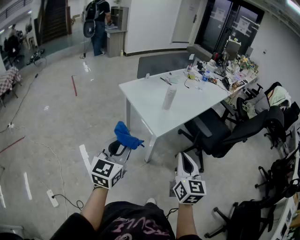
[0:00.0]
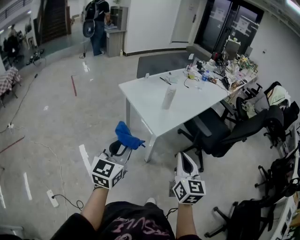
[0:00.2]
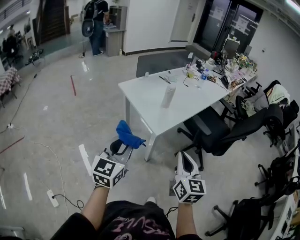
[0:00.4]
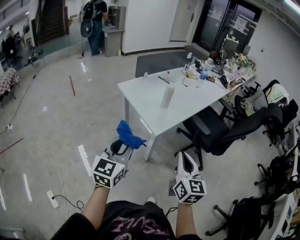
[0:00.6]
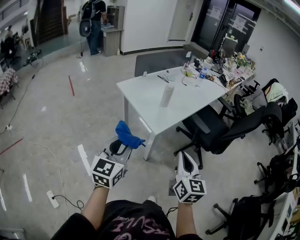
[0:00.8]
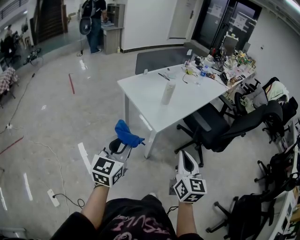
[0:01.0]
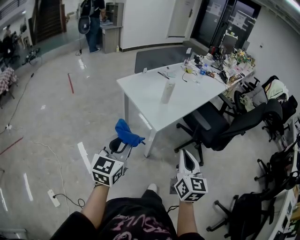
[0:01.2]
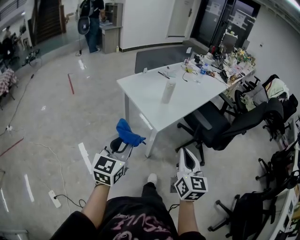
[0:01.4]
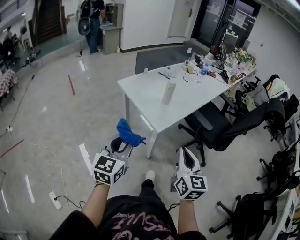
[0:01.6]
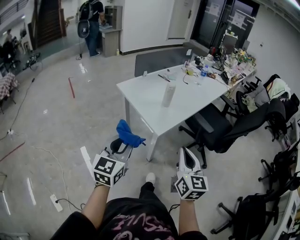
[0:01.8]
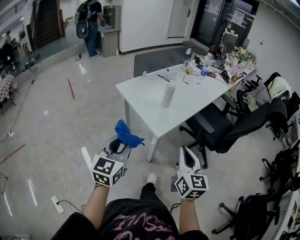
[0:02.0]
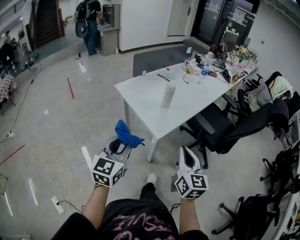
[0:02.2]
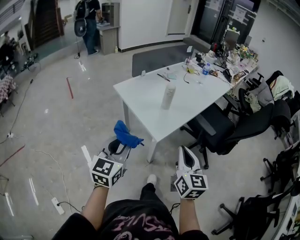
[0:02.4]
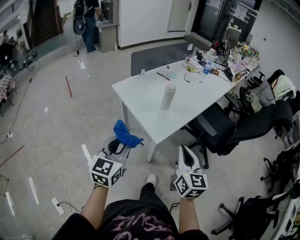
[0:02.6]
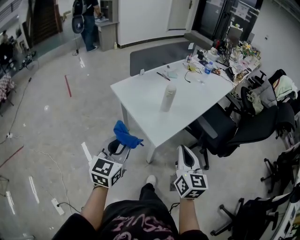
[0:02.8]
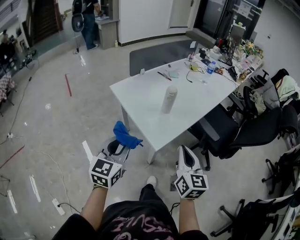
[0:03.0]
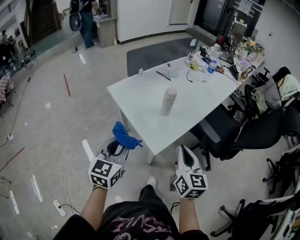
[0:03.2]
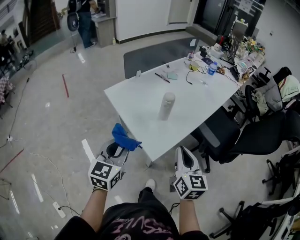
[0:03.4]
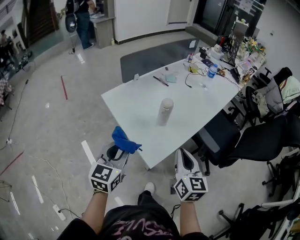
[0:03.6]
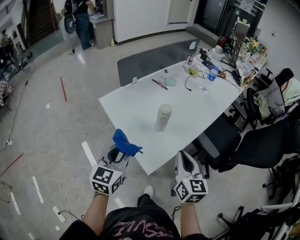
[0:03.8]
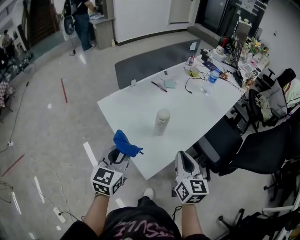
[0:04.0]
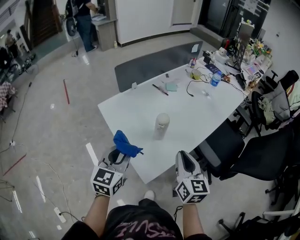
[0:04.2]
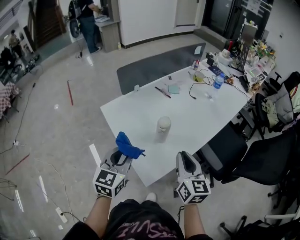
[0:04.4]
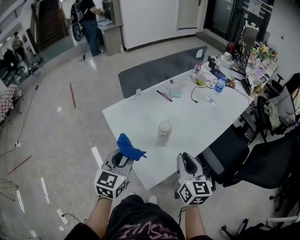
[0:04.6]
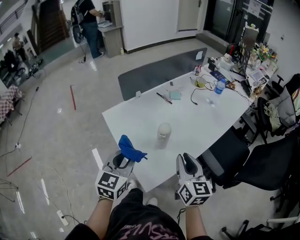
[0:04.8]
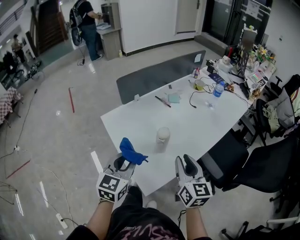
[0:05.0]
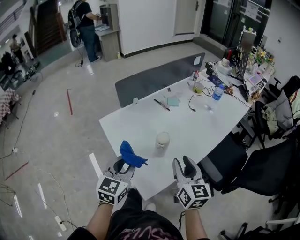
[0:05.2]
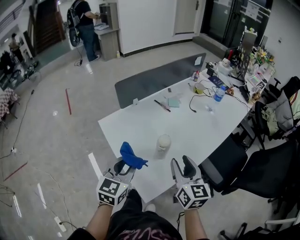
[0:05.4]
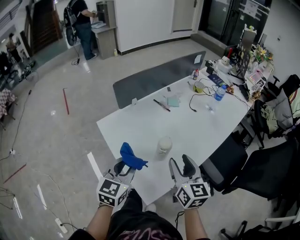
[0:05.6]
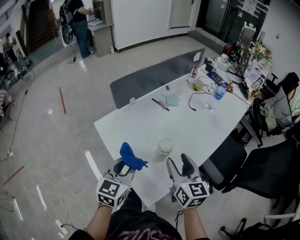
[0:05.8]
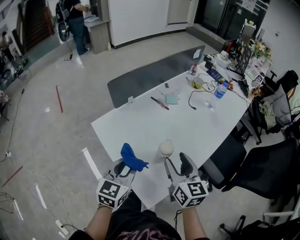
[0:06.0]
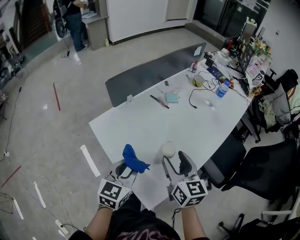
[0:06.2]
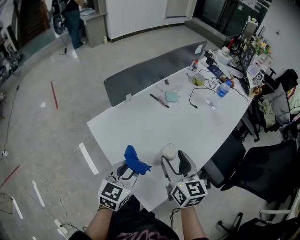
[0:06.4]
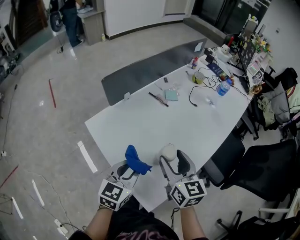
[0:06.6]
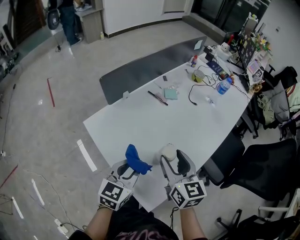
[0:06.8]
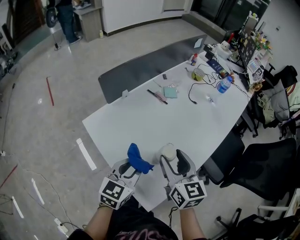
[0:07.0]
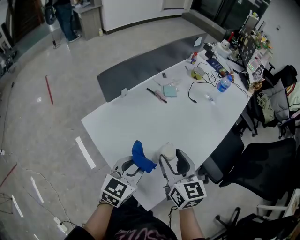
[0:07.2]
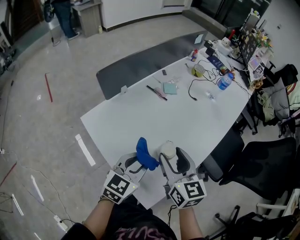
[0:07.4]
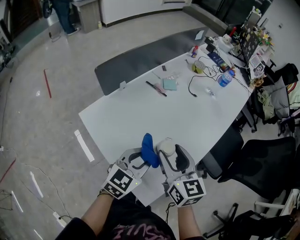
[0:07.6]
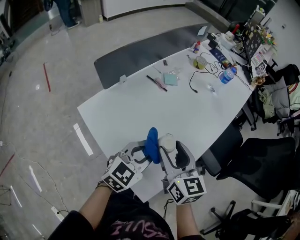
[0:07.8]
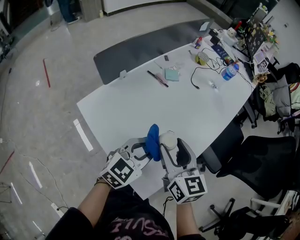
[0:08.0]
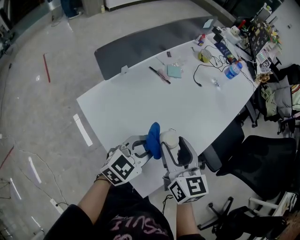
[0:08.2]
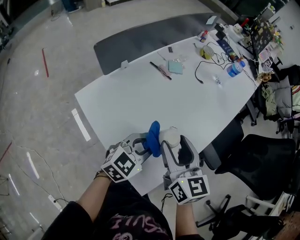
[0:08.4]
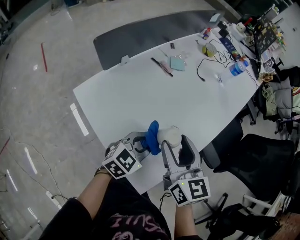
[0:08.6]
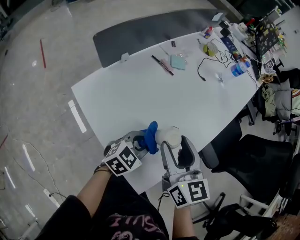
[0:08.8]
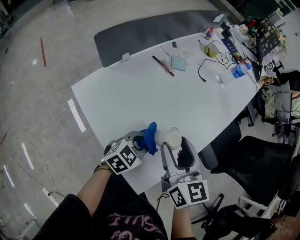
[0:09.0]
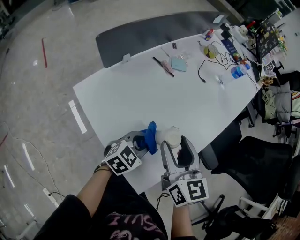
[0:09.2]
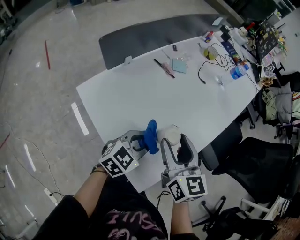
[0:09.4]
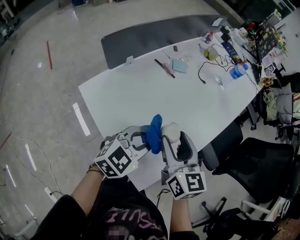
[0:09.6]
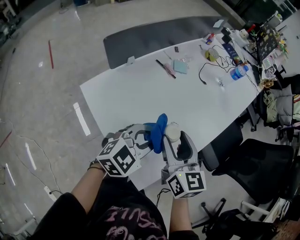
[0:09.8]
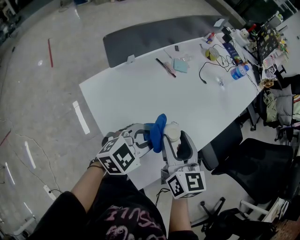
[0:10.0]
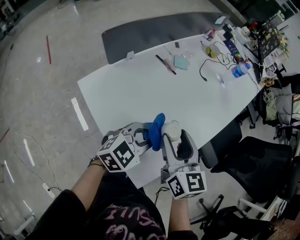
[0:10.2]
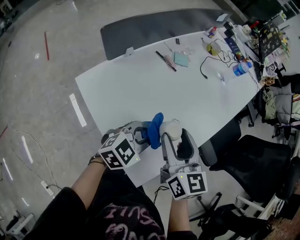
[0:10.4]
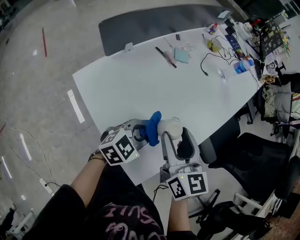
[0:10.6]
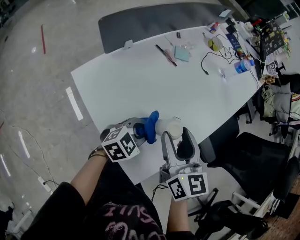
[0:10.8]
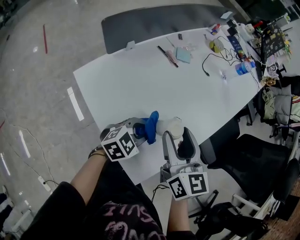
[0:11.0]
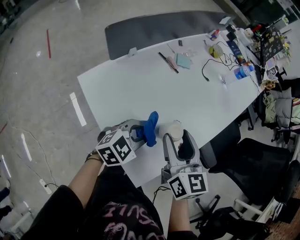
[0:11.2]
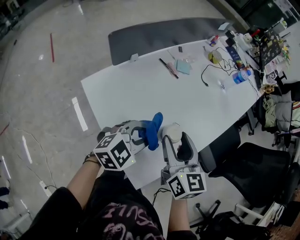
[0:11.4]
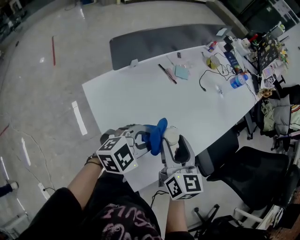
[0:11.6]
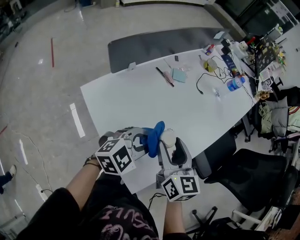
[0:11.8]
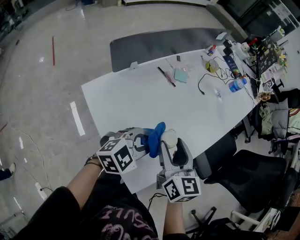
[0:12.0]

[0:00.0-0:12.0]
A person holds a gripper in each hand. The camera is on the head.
0:00.0 to 0:01.6: The grippers make only small movements.
0:01.6 to 0:03.0: Both grippers travel together forward, roughly 20 cm.
0:03.0 to 0:04.4: Both grippers travel together forward, roughly 20 cm.
0:04.4 to 0:06.0: The left gripper heads forward, covering some 10 cm, while the right gripper is displaced forward and to the left by some 15 cm, and opens.
0:06.0 to 0:07.6: The left gripper travels to the right and forward by some 10 cm, and swivels about 20 degrees; the right gripper shifts by some 5 cm.
0:07.6 to 0:09.0: The left gripper travels downward by some 10 cm.
0:09.0 to 0:10.4: The left gripper heads upward, covering some 5 cm.

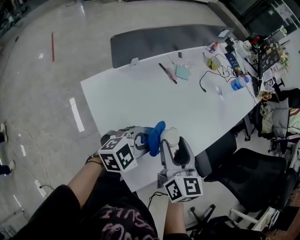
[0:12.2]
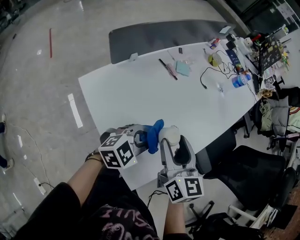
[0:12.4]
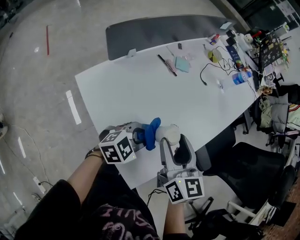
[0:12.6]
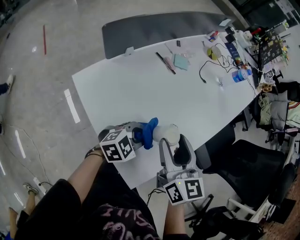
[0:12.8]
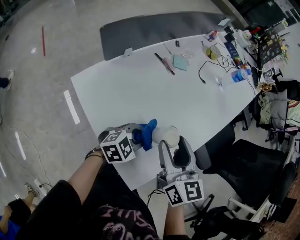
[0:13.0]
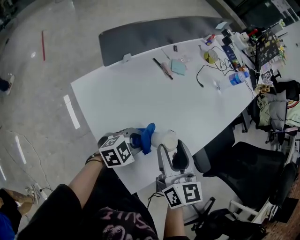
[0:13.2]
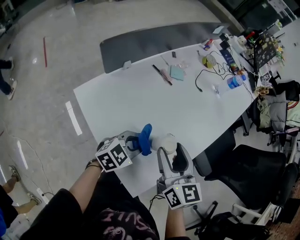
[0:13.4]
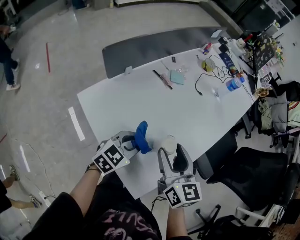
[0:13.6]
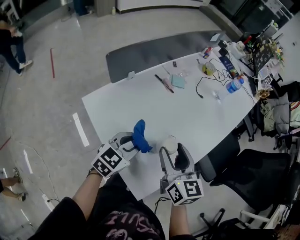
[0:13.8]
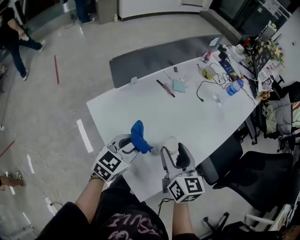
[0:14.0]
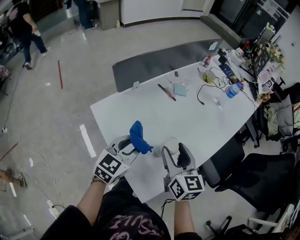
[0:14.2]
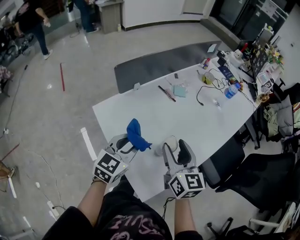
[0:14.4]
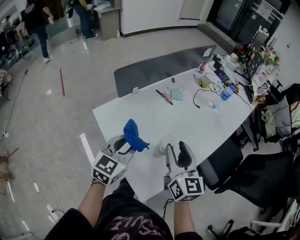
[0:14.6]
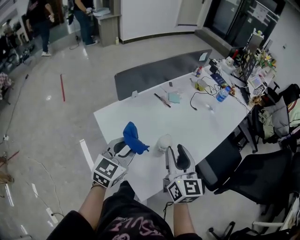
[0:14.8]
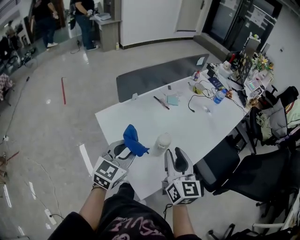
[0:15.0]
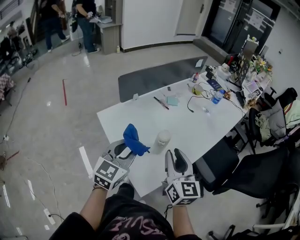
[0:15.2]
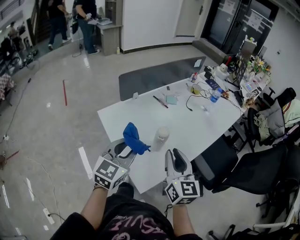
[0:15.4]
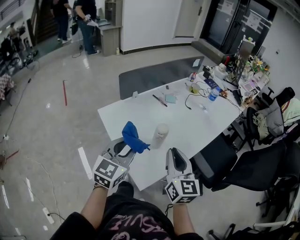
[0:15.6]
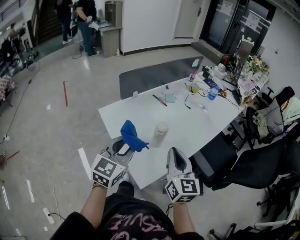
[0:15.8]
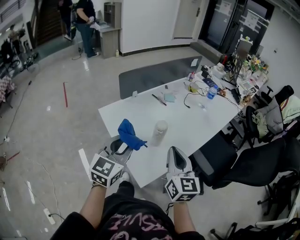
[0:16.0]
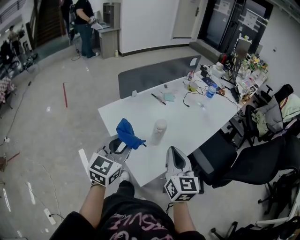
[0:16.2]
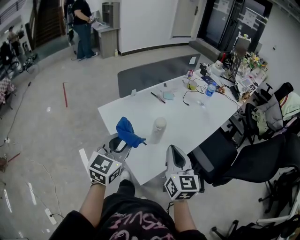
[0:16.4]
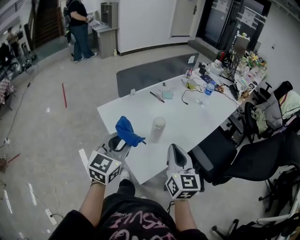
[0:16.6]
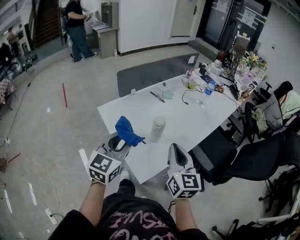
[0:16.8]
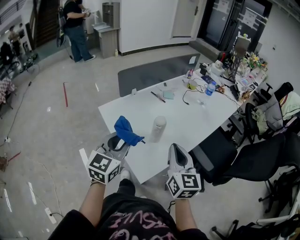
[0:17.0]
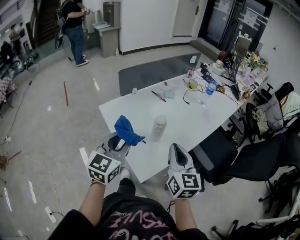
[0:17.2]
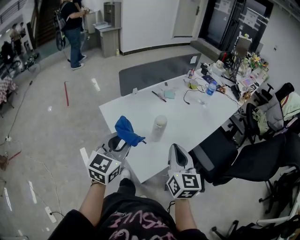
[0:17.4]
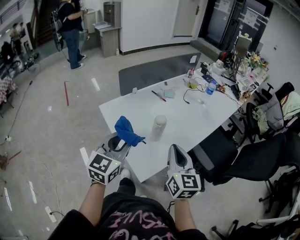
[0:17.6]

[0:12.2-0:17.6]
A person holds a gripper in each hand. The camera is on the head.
0:12.2 to 0:13.6: The left gripper heads to the left, covering roughly 5 cm.
0:13.6 to 0:15.0: The left gripper goes approximately 20 cm upward and backward, and turns by roughly 30 degrees. Meanwhile the right gripper is displaced upward and backward by some 10 cm, and closes.
0:15.0 to 0:16.2: Both grippers move backward, approximately 10 cm. The right gripper closes up.
0:16.2 to 0:17.6: The grippers make only small movements.

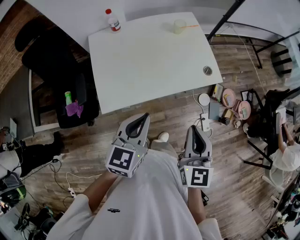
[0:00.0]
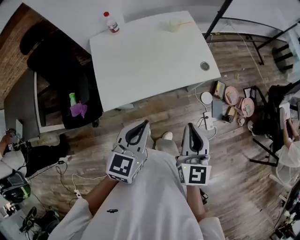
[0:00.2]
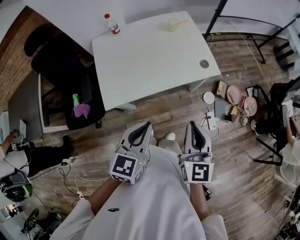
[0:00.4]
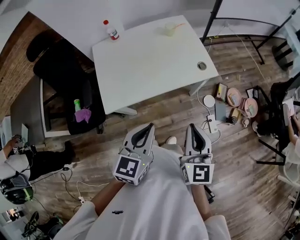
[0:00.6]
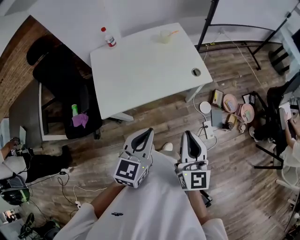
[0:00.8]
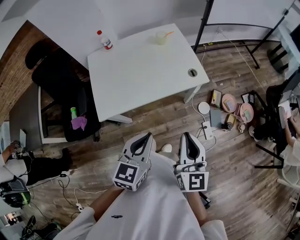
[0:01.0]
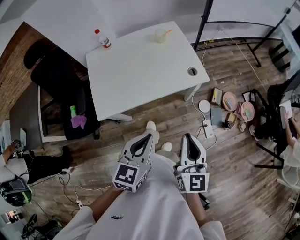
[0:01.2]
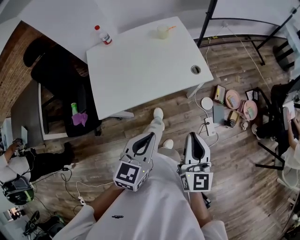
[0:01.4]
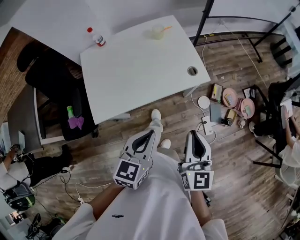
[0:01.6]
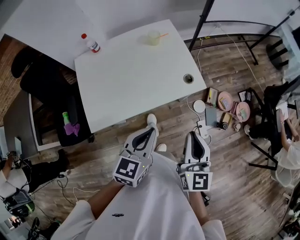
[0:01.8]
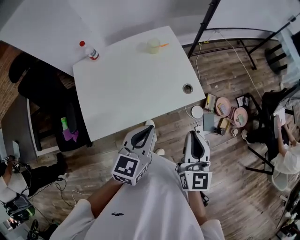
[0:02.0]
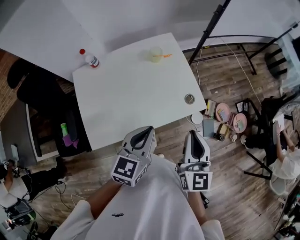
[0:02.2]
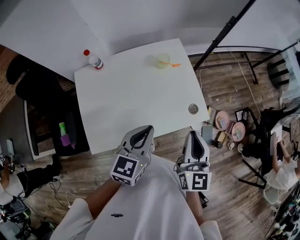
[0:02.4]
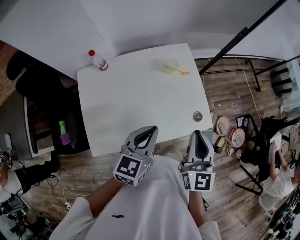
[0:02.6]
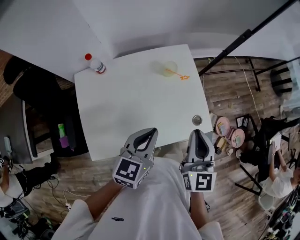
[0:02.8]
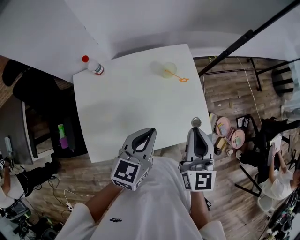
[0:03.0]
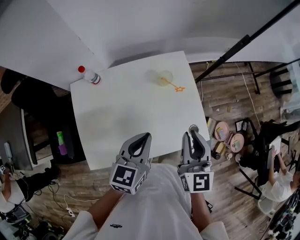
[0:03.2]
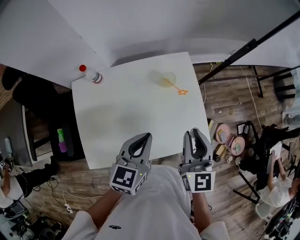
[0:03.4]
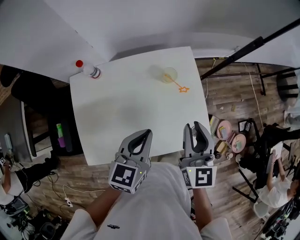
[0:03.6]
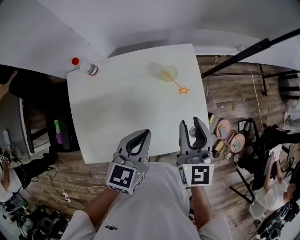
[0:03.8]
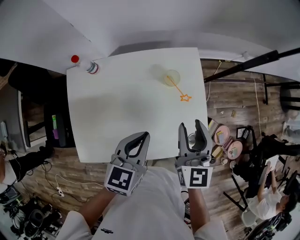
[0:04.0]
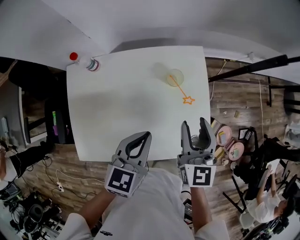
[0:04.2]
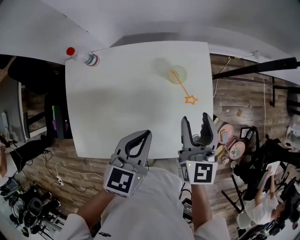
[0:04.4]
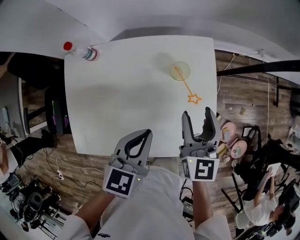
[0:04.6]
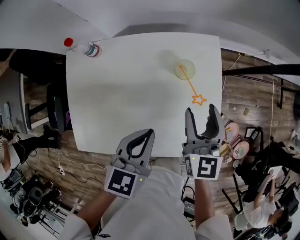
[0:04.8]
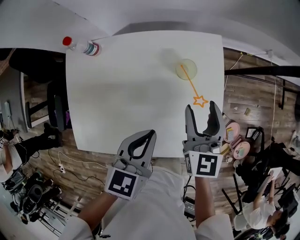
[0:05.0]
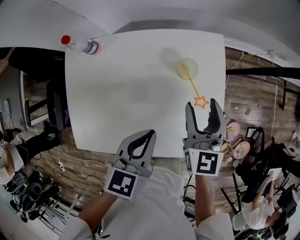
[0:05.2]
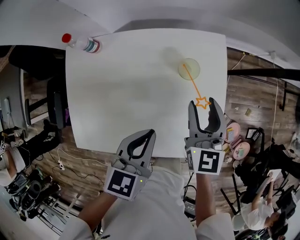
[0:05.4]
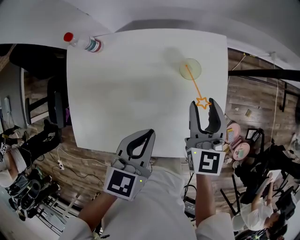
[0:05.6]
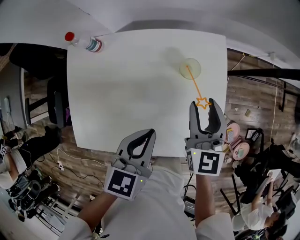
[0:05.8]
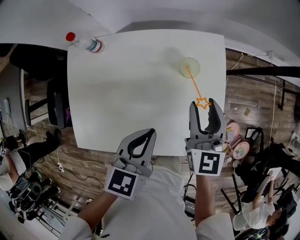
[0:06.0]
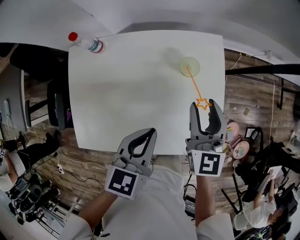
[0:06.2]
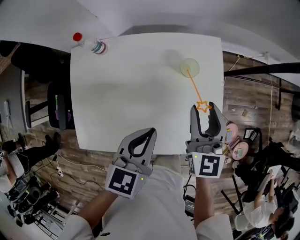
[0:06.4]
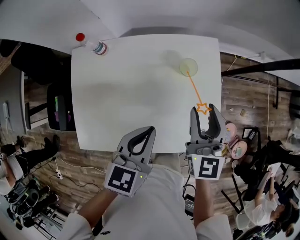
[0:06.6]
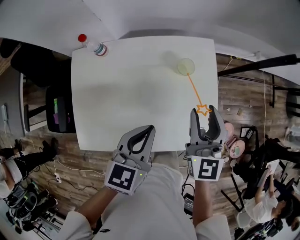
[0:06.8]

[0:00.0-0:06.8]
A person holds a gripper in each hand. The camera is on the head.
0:00.0 to 0:01.4: The left gripper is displaced to the right and backward by approximately 15 cm. Meanwhile the right gripper shifts some 10 cm to the right.
0:01.4 to 0:02.8: The two grippers go approximately 30 cm forward.
0:02.8 to 0:04.0: The right gripper goes roughly 15 cm forward and downward, and opens. Meanwhile the left gripper is displaced forward and downward by approximately 10 cm.
0:04.0 to 0:05.4: The left gripper heads downward, covering about 5 cm. Meanwhile the right gripper moves downward and forward, approximately 15 cm.
0:05.4 to 0:06.8: The left gripper is displaced upward by roughly 5 cm. The right gripper heads upward and backward, covering some 10 cm.
